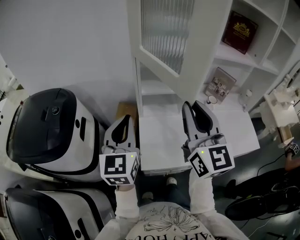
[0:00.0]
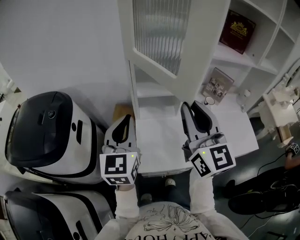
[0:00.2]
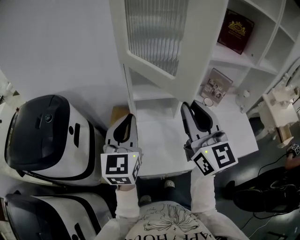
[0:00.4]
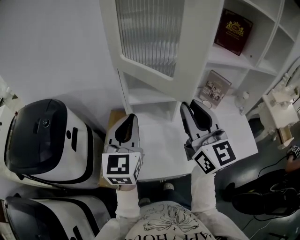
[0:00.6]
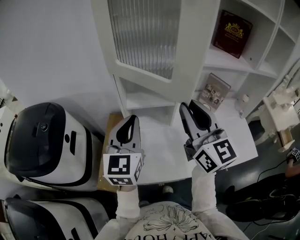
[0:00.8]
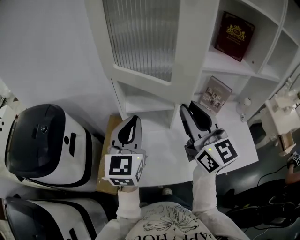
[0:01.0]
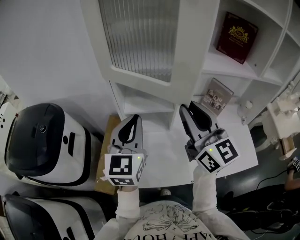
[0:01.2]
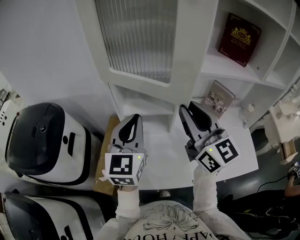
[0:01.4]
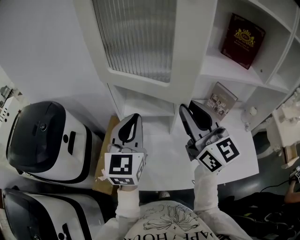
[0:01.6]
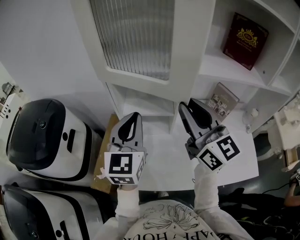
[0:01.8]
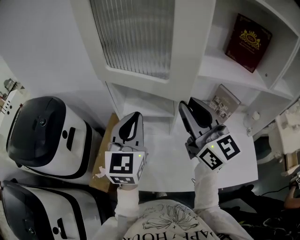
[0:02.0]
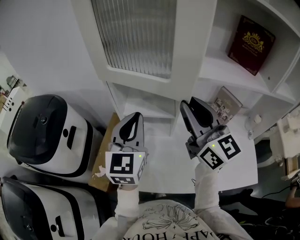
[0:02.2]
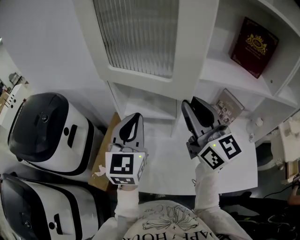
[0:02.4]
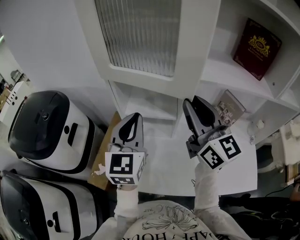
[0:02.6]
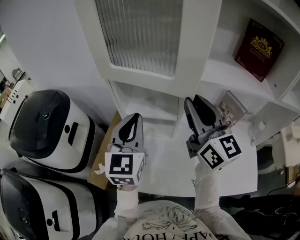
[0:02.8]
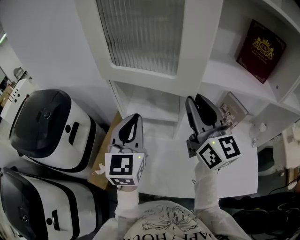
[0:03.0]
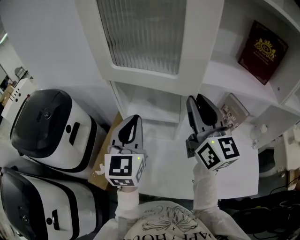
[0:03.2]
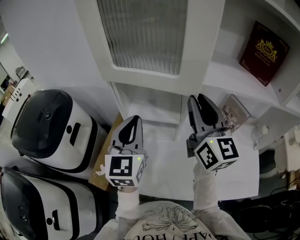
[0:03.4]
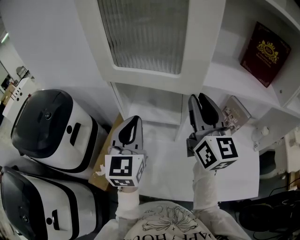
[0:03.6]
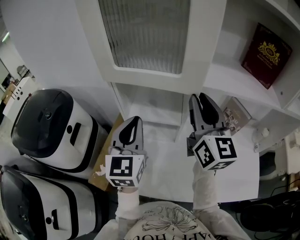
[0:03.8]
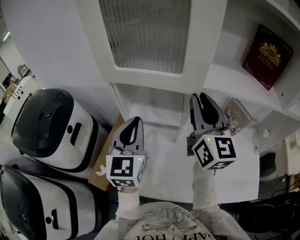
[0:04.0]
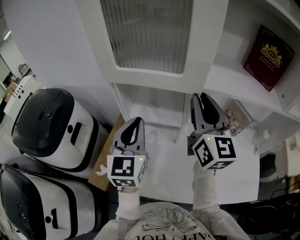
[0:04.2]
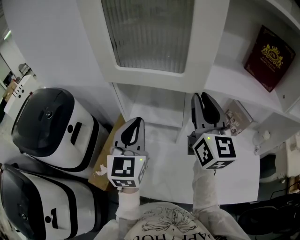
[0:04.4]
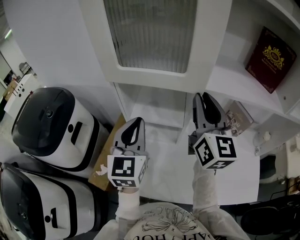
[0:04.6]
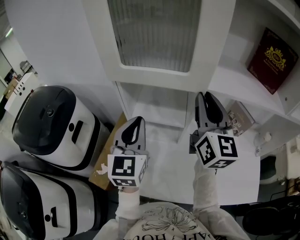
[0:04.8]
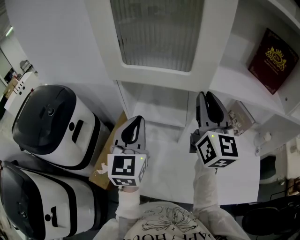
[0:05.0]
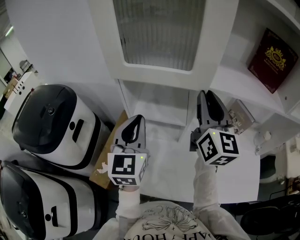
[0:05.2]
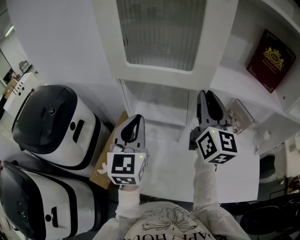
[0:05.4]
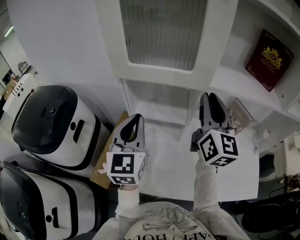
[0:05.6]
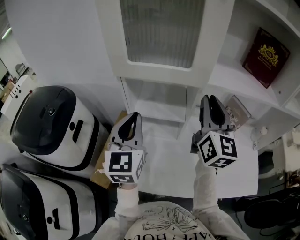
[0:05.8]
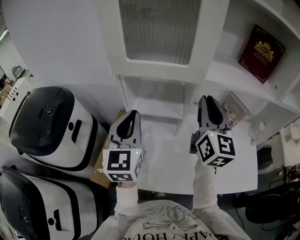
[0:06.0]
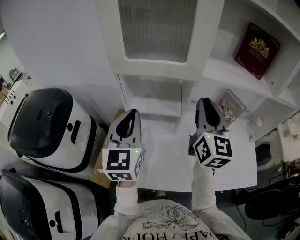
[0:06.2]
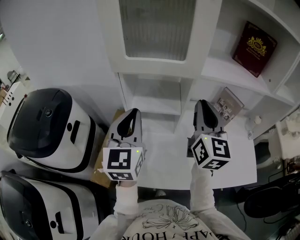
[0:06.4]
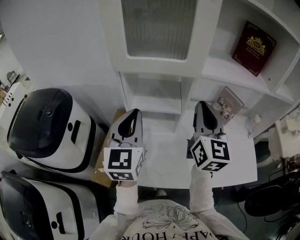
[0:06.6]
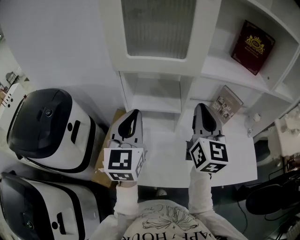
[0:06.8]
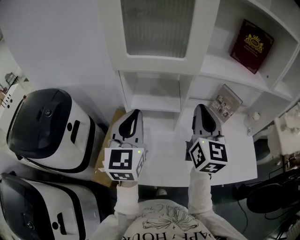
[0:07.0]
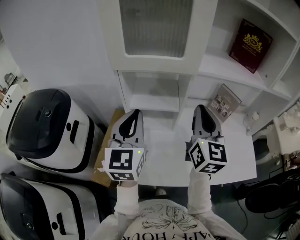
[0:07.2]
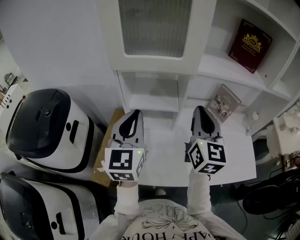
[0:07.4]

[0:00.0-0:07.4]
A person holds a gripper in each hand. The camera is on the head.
0:00.0 to 0:01.4: Both grippers move to the right and forward, about 15 cm.
0:01.4 to 0:03.0: The right gripper moves forward, approximately 5 cm.
0:03.0 to 0:04.4: The grippers stay close to where they were, moving slightly.
0:04.4 to 0:06.0: The left gripper ends up about 5 cm from where it was.
0:06.0 to 0:07.4: The right gripper shifts about 5 cm backward.

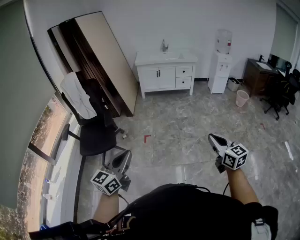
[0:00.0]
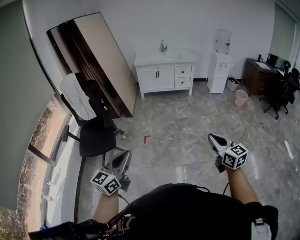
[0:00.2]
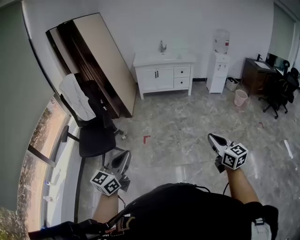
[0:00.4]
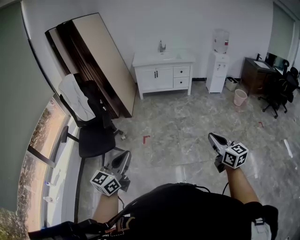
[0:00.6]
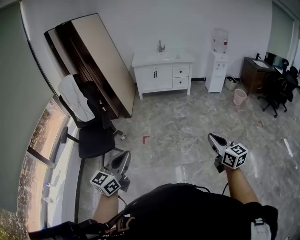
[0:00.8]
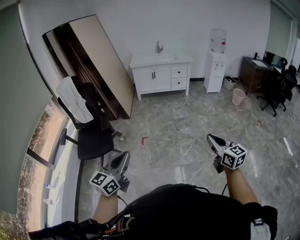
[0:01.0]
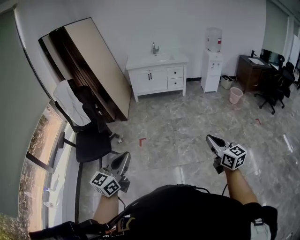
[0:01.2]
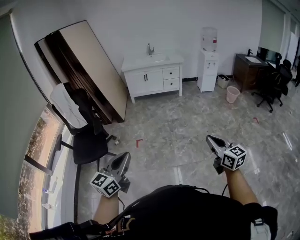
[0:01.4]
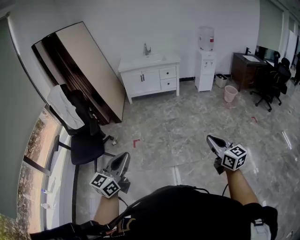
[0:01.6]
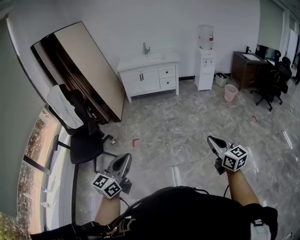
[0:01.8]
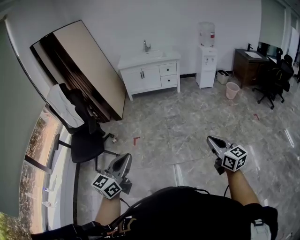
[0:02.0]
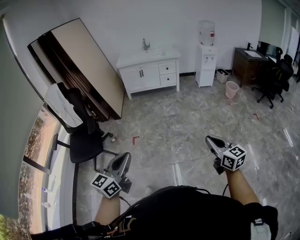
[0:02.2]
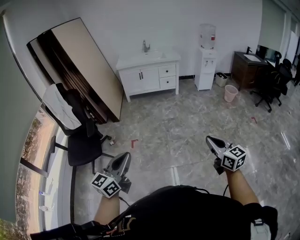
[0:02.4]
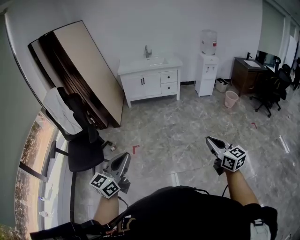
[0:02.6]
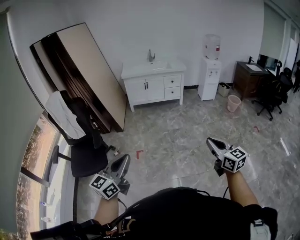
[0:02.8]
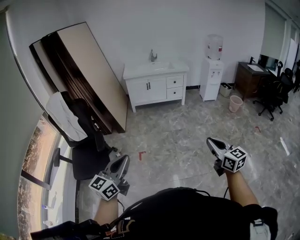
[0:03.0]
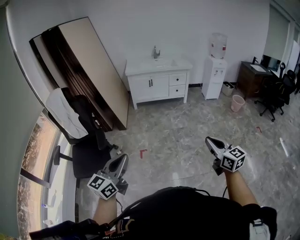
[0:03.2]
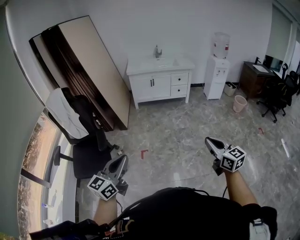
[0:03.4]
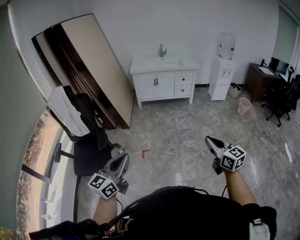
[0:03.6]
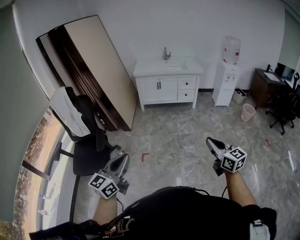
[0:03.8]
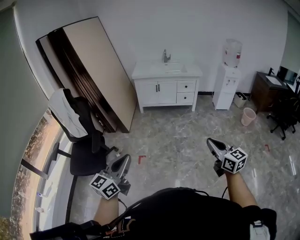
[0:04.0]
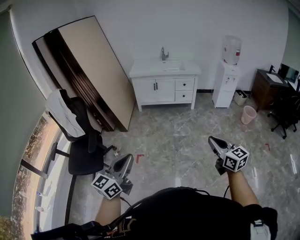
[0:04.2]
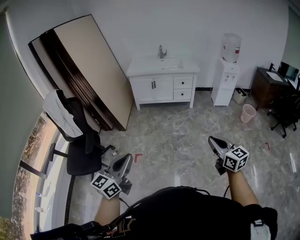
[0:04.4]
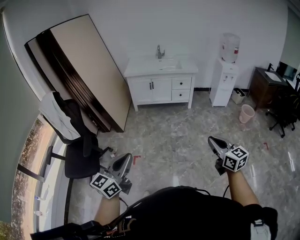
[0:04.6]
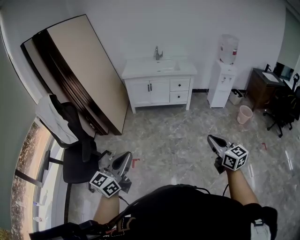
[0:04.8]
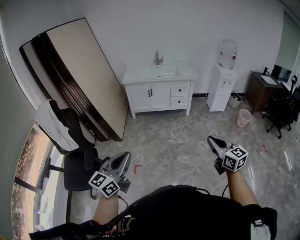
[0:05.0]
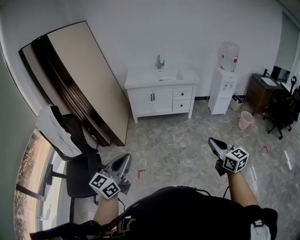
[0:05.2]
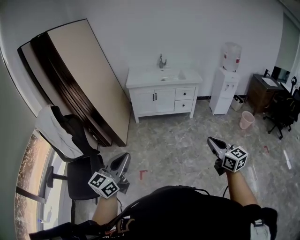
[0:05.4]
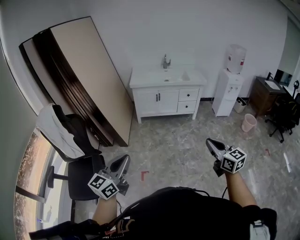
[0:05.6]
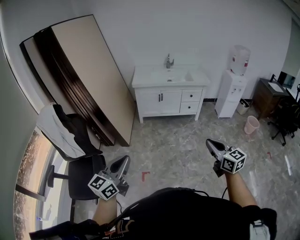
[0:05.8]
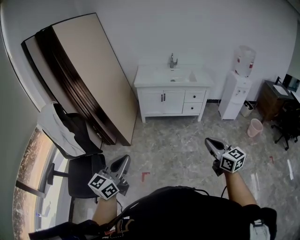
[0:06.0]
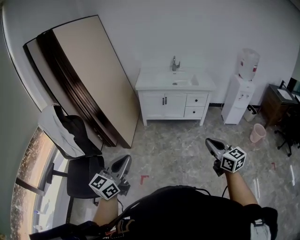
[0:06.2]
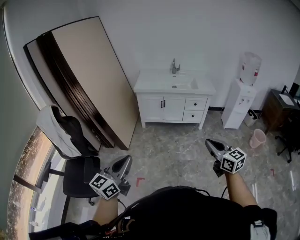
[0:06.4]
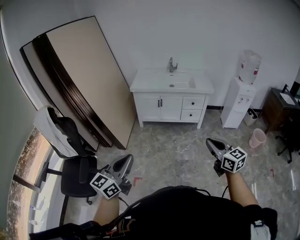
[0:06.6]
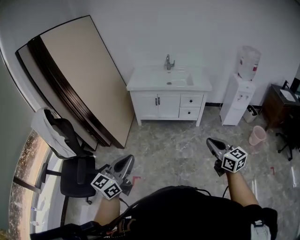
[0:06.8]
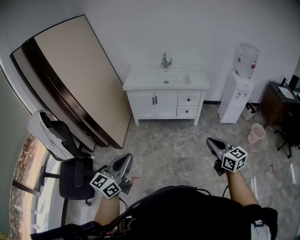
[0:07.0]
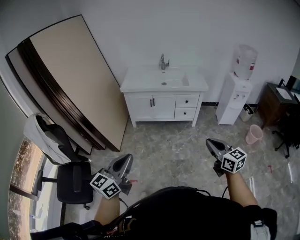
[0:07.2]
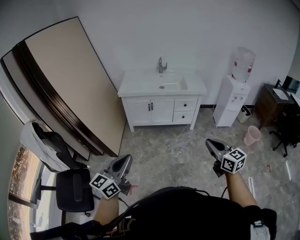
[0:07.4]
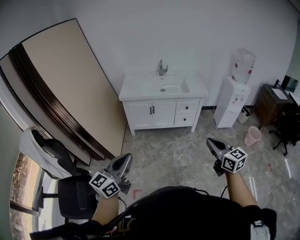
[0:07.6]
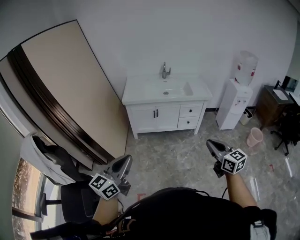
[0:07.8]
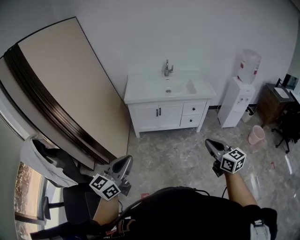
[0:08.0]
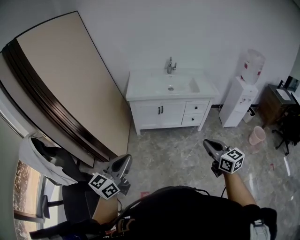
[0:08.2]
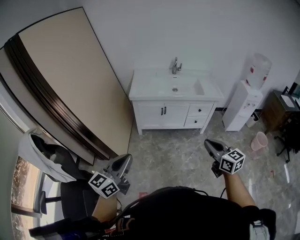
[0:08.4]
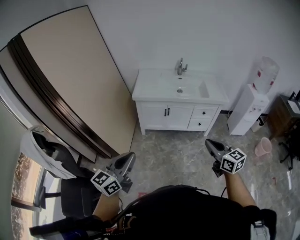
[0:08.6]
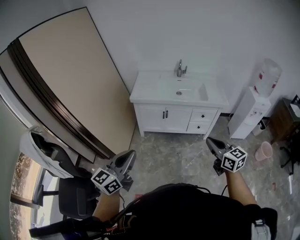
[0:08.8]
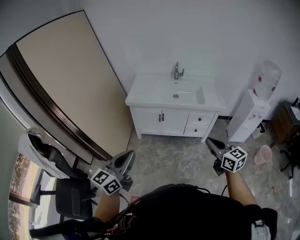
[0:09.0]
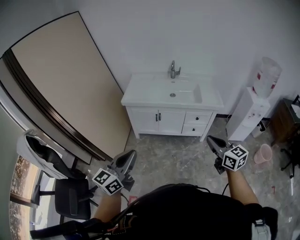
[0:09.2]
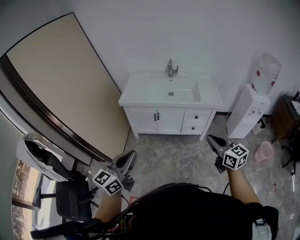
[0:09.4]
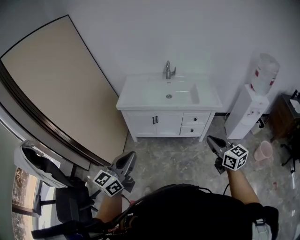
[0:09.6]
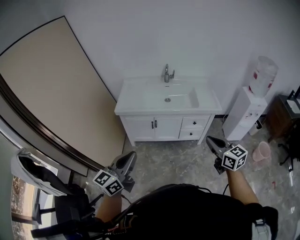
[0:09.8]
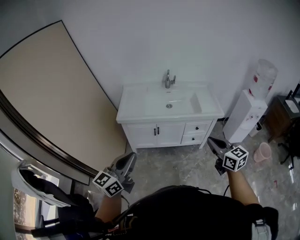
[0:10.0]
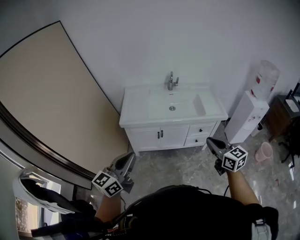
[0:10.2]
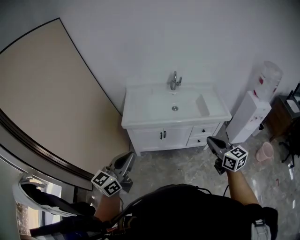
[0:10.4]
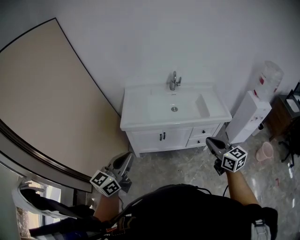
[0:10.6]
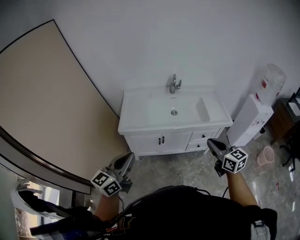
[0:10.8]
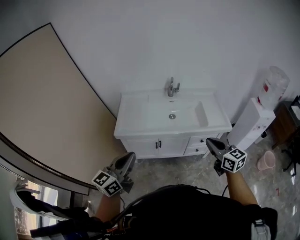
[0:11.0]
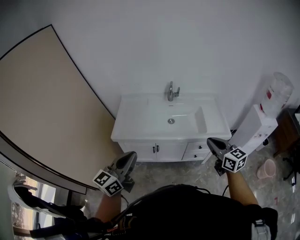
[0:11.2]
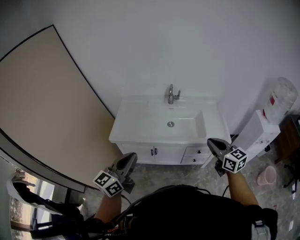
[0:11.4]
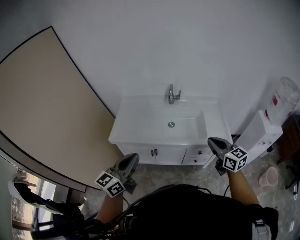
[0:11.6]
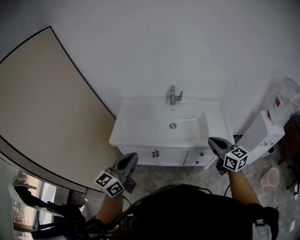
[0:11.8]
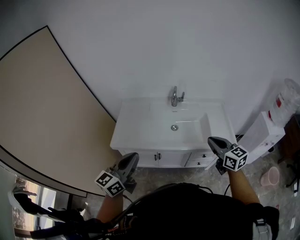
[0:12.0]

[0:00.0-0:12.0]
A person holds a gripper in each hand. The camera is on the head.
0:00.0 to 0:01.6: Both grippers move to the right, roughly 15 cm.
0:01.6 to 0:03.0: Both grippers travel together to the left and forward, about 20 cm.
0:03.0 to 0:04.4: The left gripper is displaced to the right and forward by some 25 cm; the right gripper moves forward and to the right, some 25 cm.
0:04.4 to 0:06.0: The two grippers go roughly 30 cm forward and to the left.
0:06.0 to 0:07.6: Both grippers move forward and to the right, about 25 cm.
0:07.6 to 0:09.0: Both grippers move forward, roughly 20 cm.
0:09.0 to 0:10.4: Both grippers move forward and to the left, some 25 cm.
0:10.4 to 0:12.0: Both grippers travel together forward and to the right, about 30 cm.

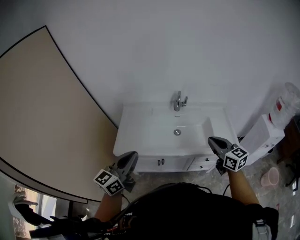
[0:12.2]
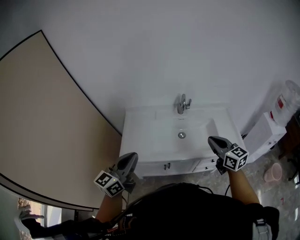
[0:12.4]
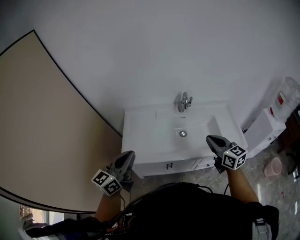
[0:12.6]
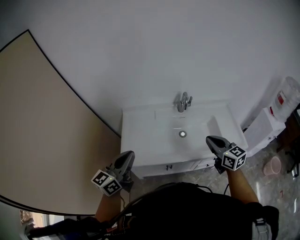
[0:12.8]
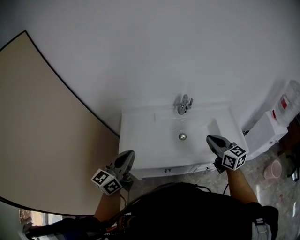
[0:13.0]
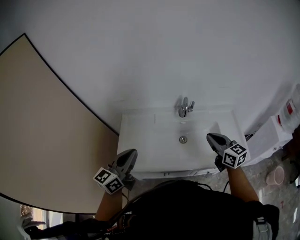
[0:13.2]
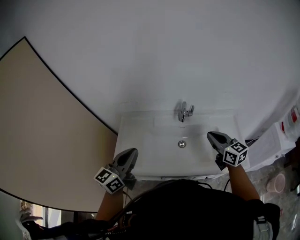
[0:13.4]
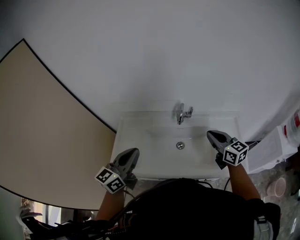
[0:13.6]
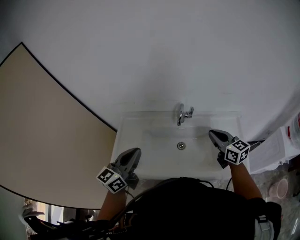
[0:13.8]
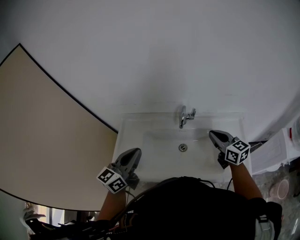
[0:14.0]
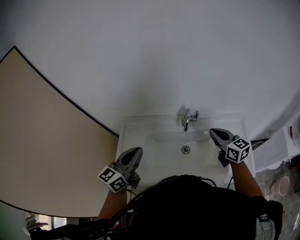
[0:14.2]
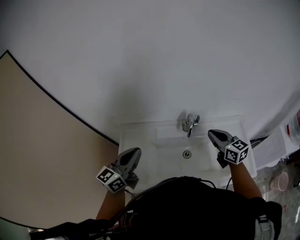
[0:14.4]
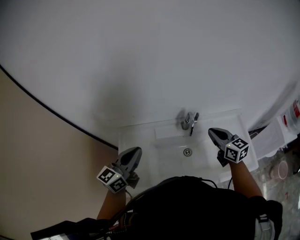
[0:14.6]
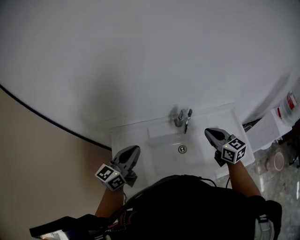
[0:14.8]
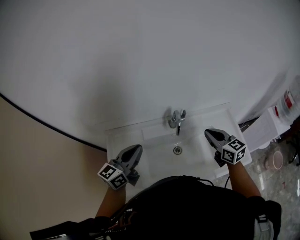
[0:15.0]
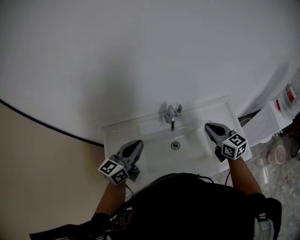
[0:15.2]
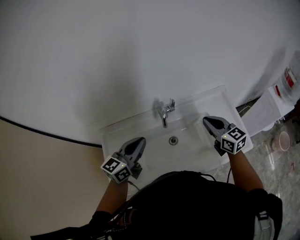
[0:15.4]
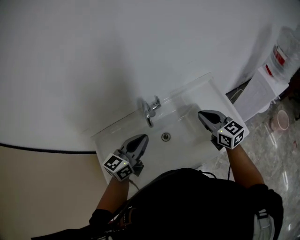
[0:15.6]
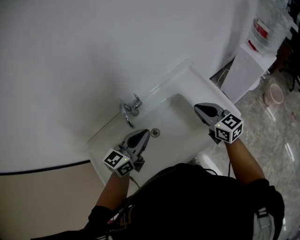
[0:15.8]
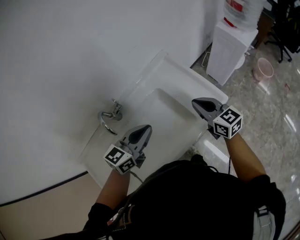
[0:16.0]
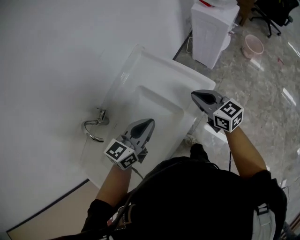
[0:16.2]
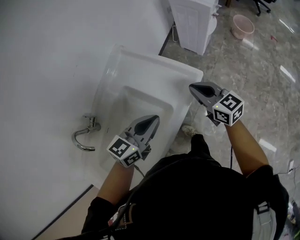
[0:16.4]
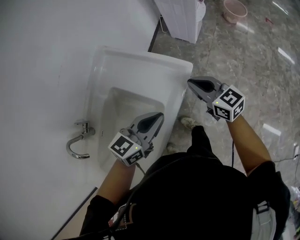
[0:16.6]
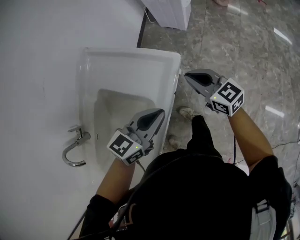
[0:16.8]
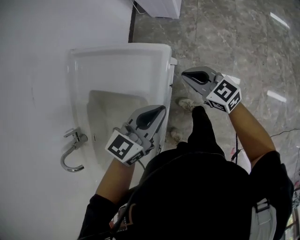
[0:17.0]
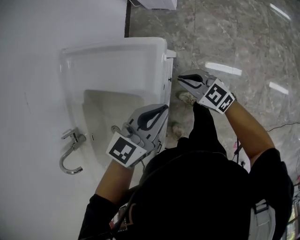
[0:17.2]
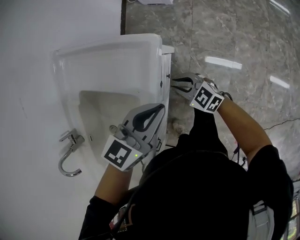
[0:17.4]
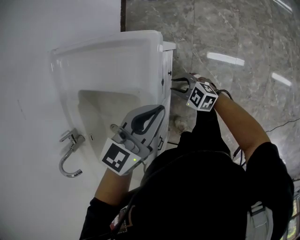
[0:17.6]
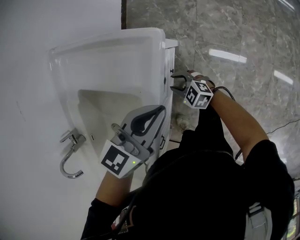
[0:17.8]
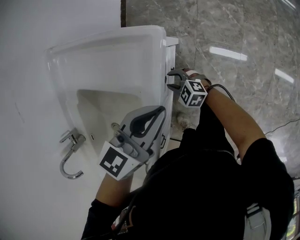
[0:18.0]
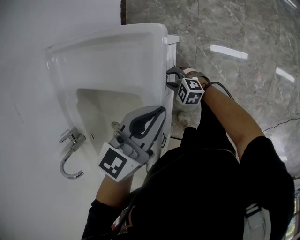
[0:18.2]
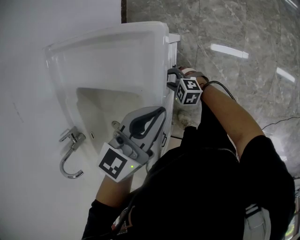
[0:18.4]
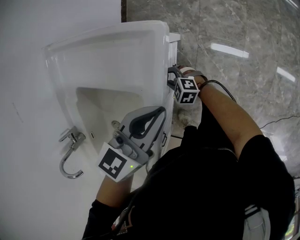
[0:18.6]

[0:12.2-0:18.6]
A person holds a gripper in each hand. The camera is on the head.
0:12.2 to 0:13.8: Both grippers move forward, some 25 cm.
0:13.8 to 0:15.4: The left gripper moves forward, some 15 cm, and swivels approximately 20 degrees. Meanwhile the right gripper shifts some 5 cm forward, and moves some 10 cm to the left and comes back.
0:15.4 to 0:17.0: Both grippers are carried about 50 cm. The left gripper rotates approximately 70 degrees. Meanwhile the right gripper turns by about 40 degrees.
0:17.0 to 0:18.6: The right gripper goes about 25 cm downward, swivels about 40 degrees, and opens up.
